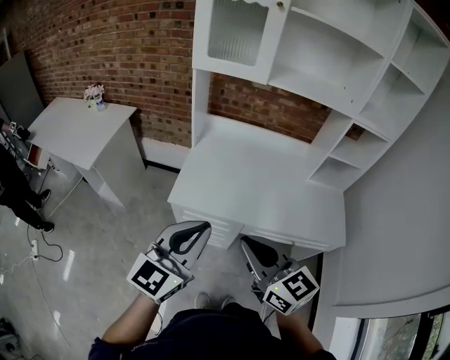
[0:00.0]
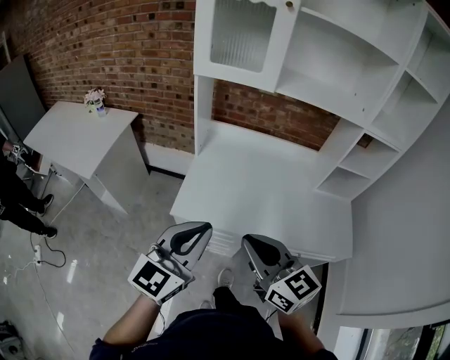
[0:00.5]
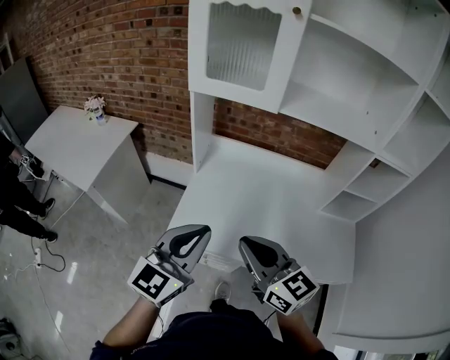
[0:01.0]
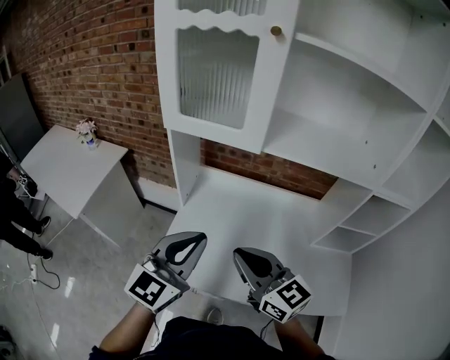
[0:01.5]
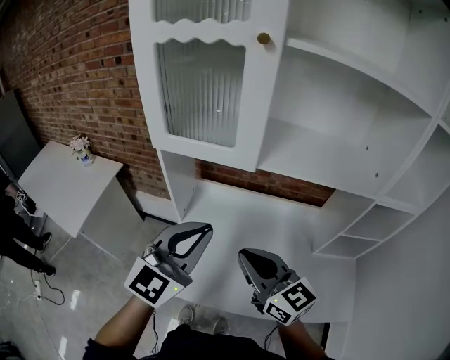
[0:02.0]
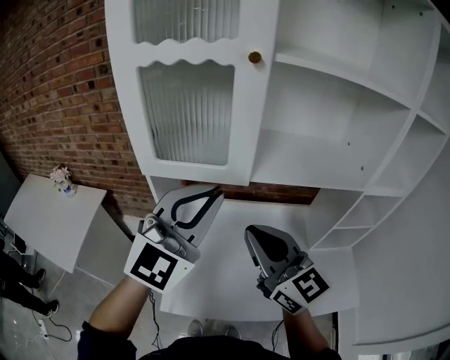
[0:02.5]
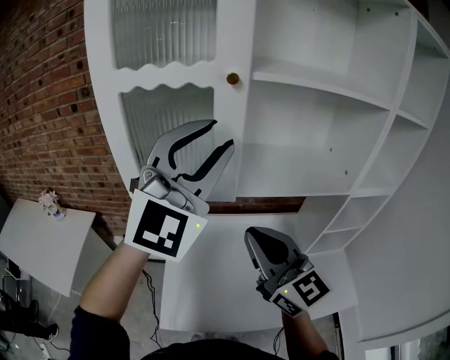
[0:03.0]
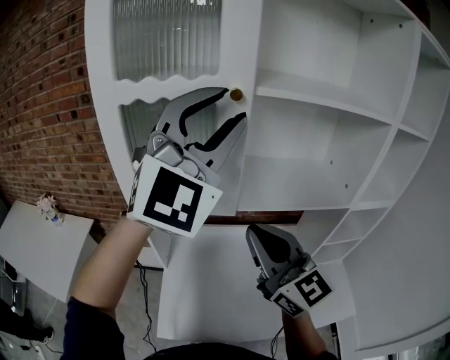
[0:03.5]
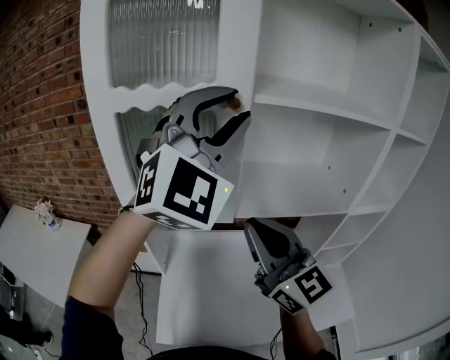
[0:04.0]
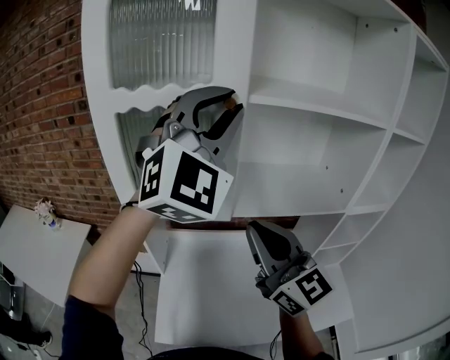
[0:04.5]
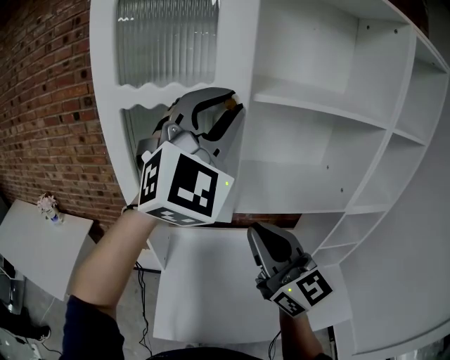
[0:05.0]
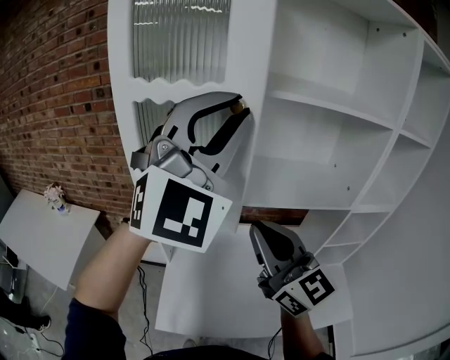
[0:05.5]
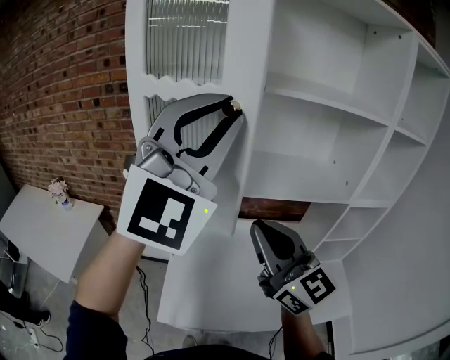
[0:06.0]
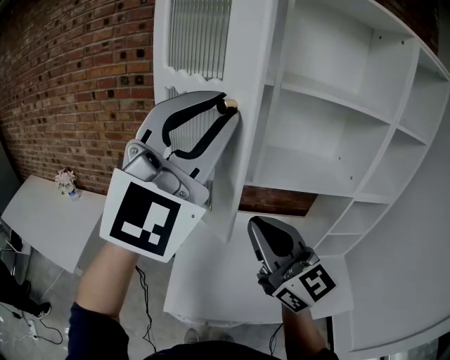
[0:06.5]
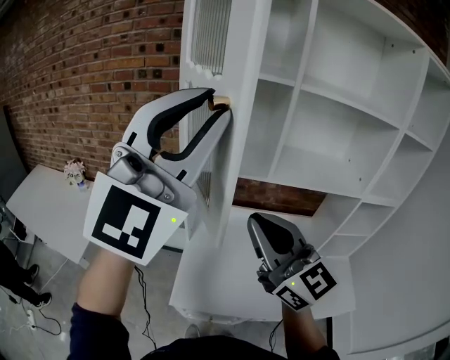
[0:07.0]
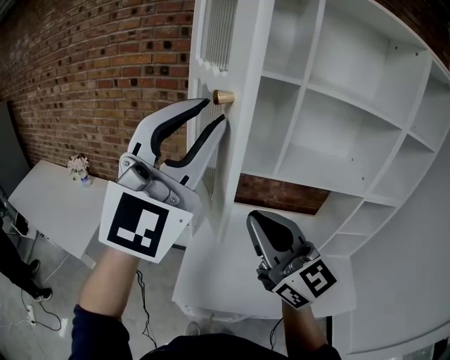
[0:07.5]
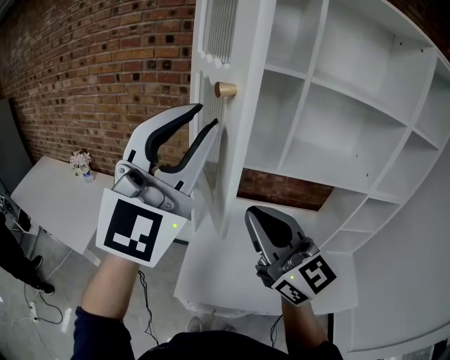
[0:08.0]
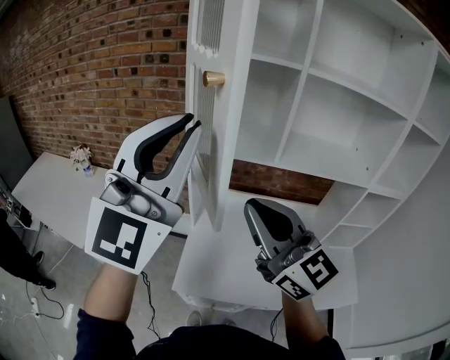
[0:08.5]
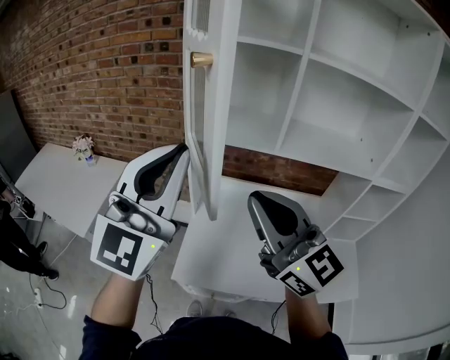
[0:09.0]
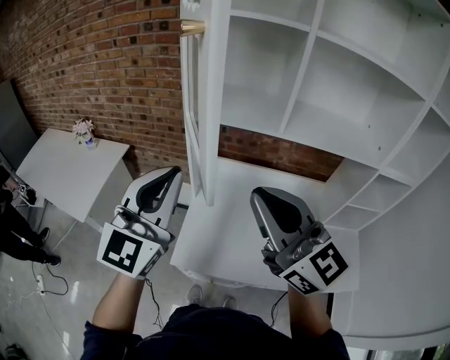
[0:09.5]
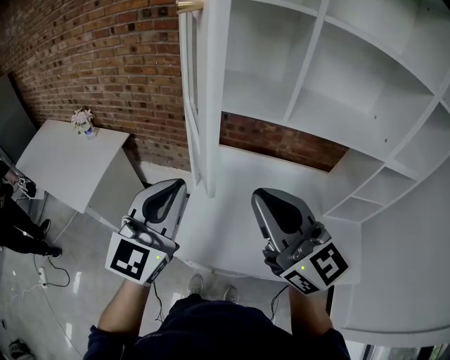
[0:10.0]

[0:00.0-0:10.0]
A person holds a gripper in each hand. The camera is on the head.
0:00.0 to 0:02.0: Both grippers travel together forward, about 35 cm.
0:02.0 to 0:04.0: The left gripper goes about 35 cm upward and forward, rolls clockwise, seen from behind, by approximately 40 degrees, and opens up. Meanwhile the right gripper heads upward and forward, covering roughly 20 cm, and rotates about 30 degrees.
0:04.0 to 0:06.0: The left gripper moves backward, roughly 10 cm, while the right gripper is displaced backward by approximately 5 cm.
0:06.0 to 0:08.0: Both grippers travel together to the left and backward, approximately 15 cm.
0:08.0 to 0:10.0: The left gripper goes roughly 25 cm downward, turns by approximately 30 degrees, and closes. Meanwhile the right gripper moves downward, some 5 cm.

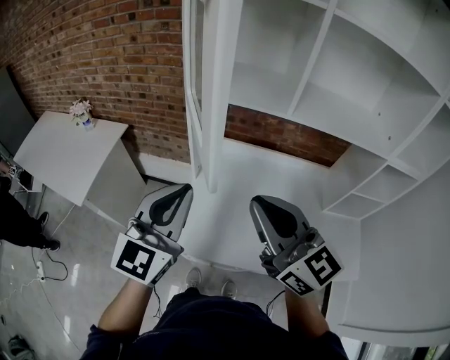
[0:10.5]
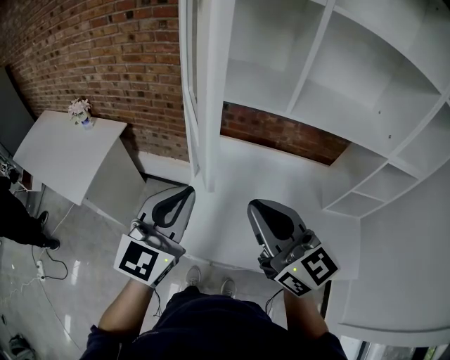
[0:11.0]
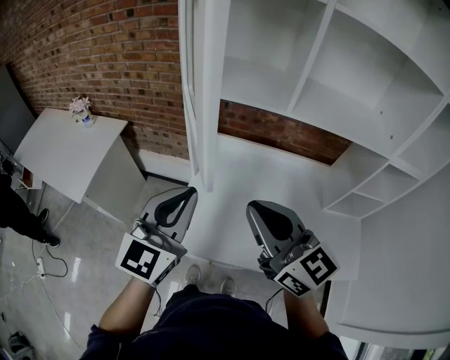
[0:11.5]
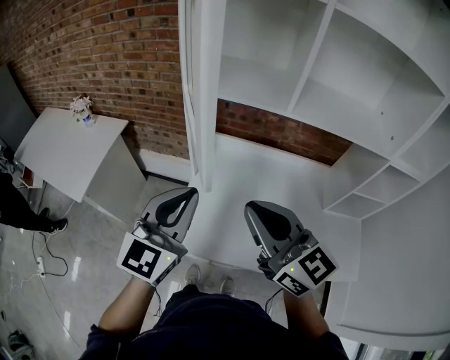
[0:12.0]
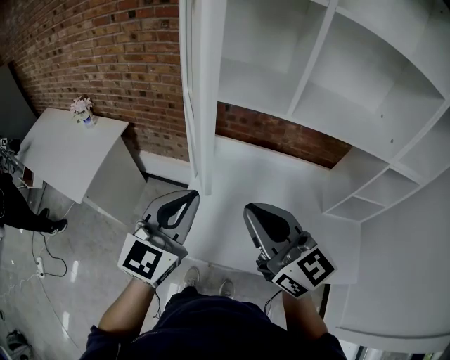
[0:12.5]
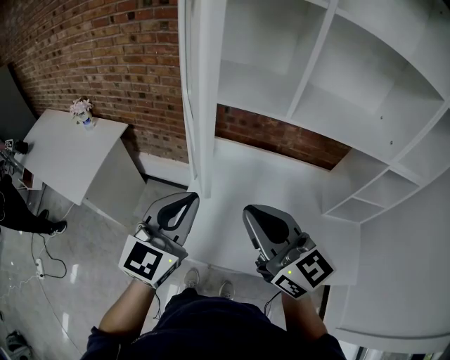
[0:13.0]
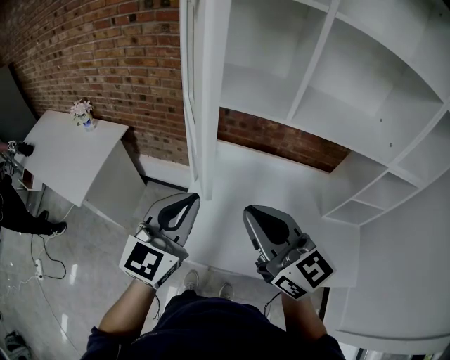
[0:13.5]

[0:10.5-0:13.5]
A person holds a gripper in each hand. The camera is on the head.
0:10.5 to 0:12.0: The grippers move only a little.
0:12.0 to 0:13.5: Both grippers stay put.

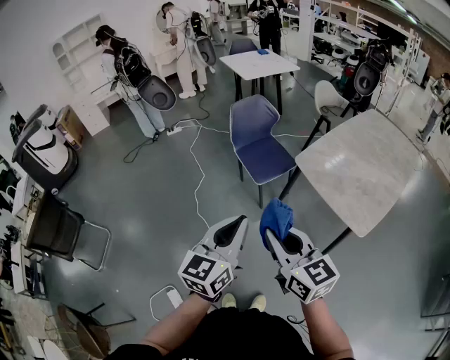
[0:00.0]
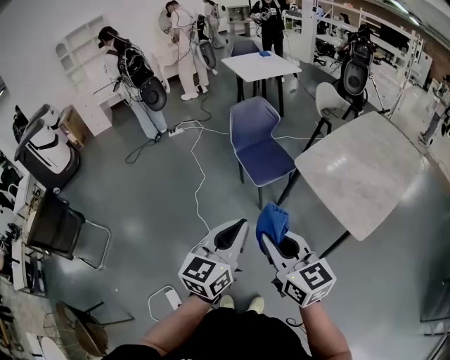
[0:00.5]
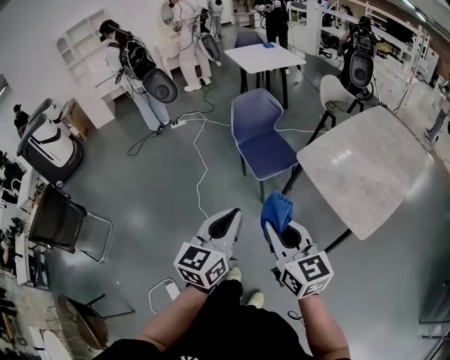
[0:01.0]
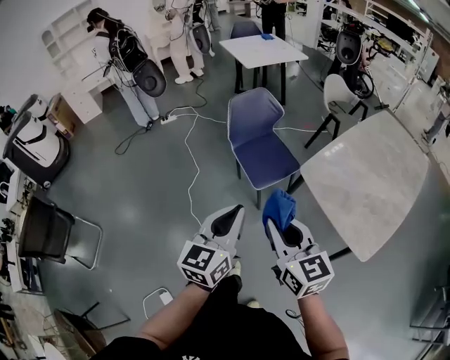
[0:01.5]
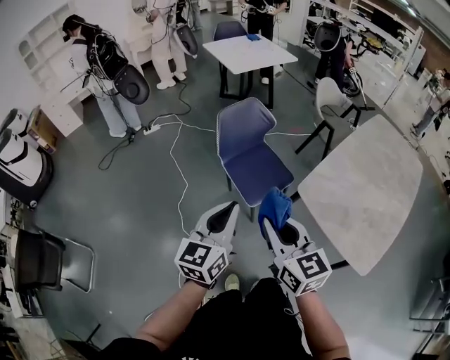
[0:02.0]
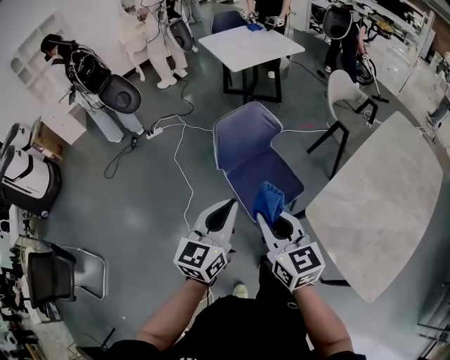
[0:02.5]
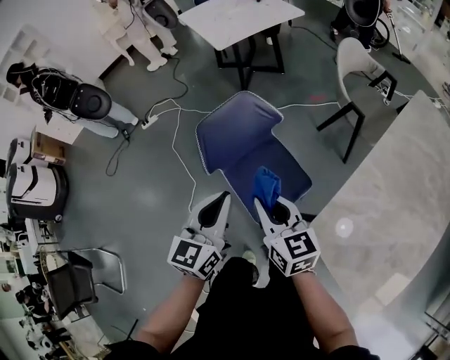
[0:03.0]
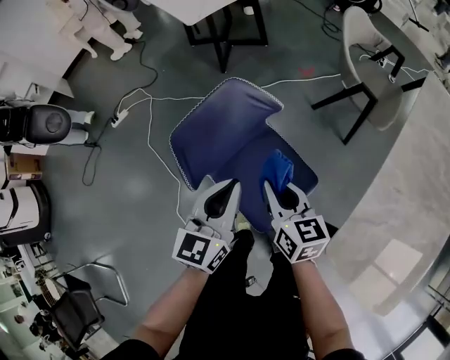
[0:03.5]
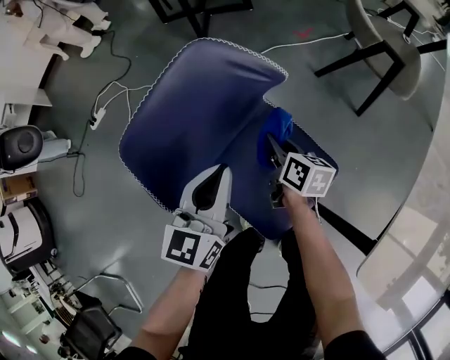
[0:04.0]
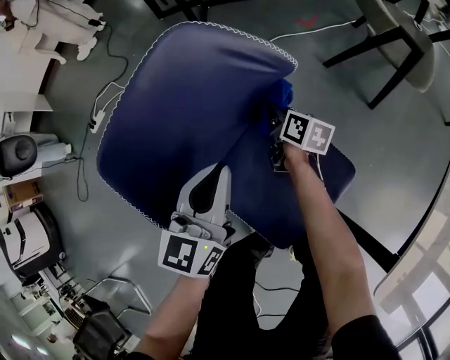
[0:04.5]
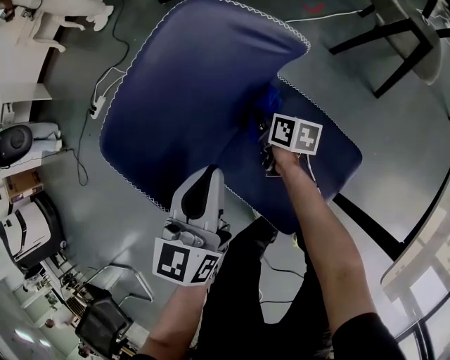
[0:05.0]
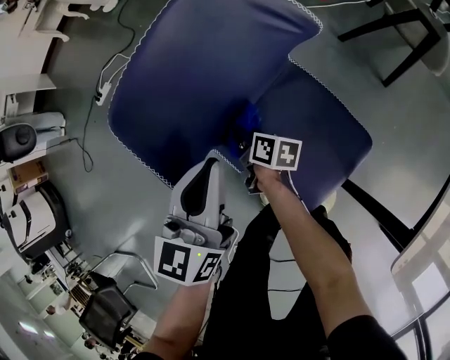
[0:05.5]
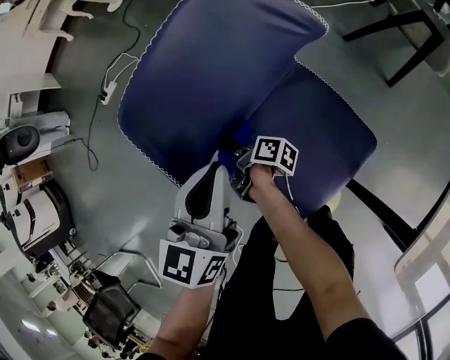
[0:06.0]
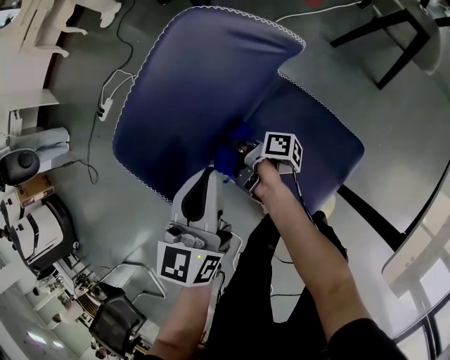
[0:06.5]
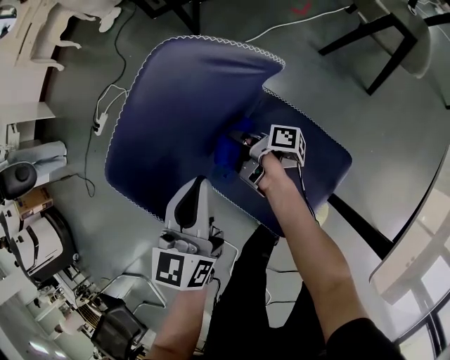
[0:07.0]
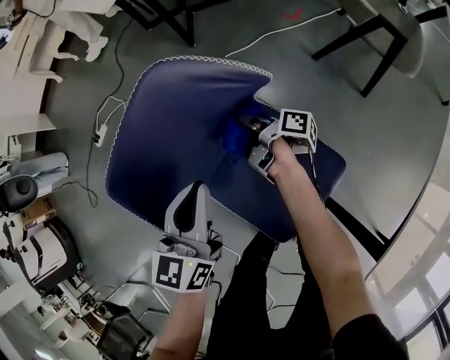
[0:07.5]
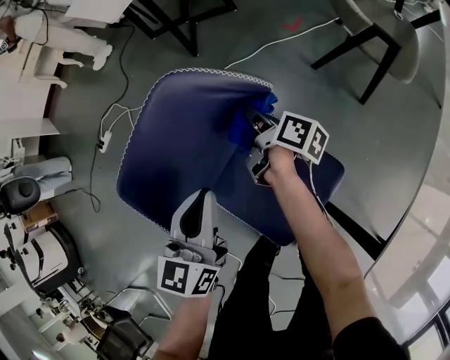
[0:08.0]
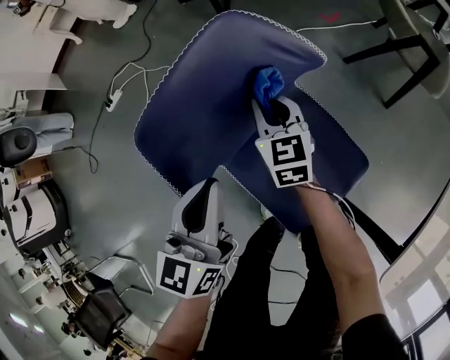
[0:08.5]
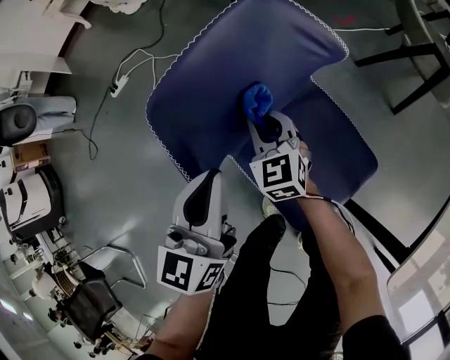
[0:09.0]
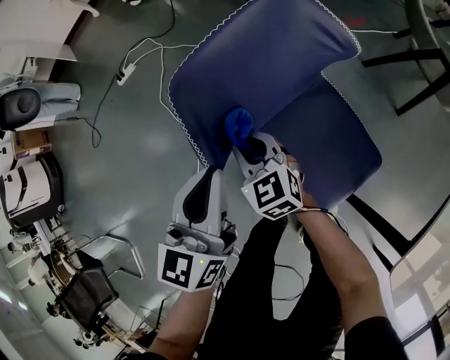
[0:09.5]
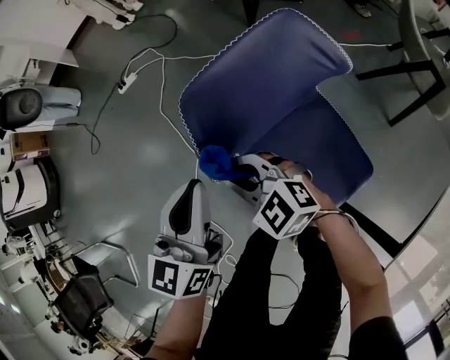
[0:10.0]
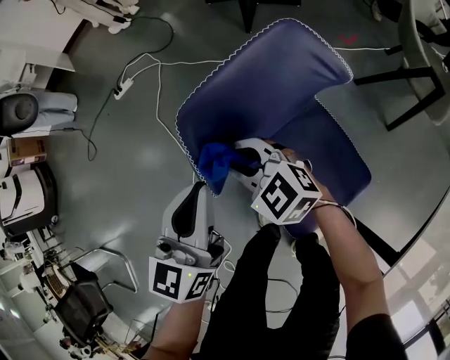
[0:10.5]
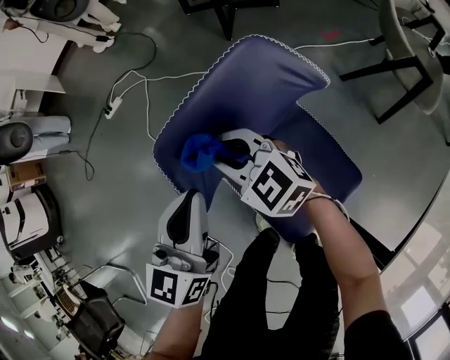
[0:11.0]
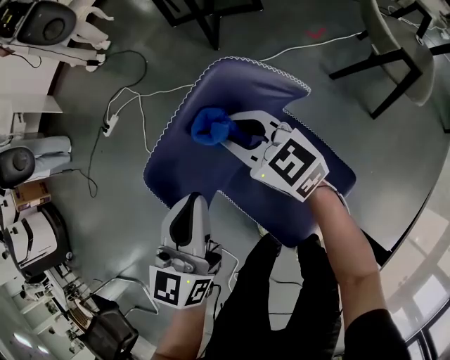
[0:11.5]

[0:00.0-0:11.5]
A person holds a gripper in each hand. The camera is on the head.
0:00.0 to 0:02.0: The two grippers go roughly 35 cm forward.
0:02.0 to 0:04.0: The two grippers travel together, forward, about 60 cm. Both grippers travel together downward, about 50 cm. The right gripper twists roughly 50 degrees clockwise, seen from behind.
0:04.0 to 0:06.0: The right gripper moves to the left and downward, approximately 25 cm, and rolls clockwise, seen from behind, by roughly 40 degrees. The left gripper travels to the left by approximately 10 cm.
0:06.0 to 0:07.5: The right gripper heads to the right and forward, covering roughly 25 cm. Meanwhile the left gripper moves to the right and forward, about 10 cm.
0:07.5 to 0:09.5: The right gripper moves to the left, backward and upward, approximately 25 cm, and rolls counterclockwise, seen from behind, by approximately 110 degrees. Meanwhile the left gripper heads to the left and backward, covering about 15 cm.
0:09.5 to 0:11.5: The right gripper travels to the right, upward and forward by some 20 cm. Meanwhile the left gripper heads to the right and forward, covering some 10 cm.

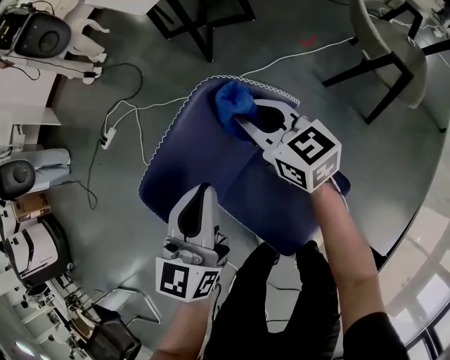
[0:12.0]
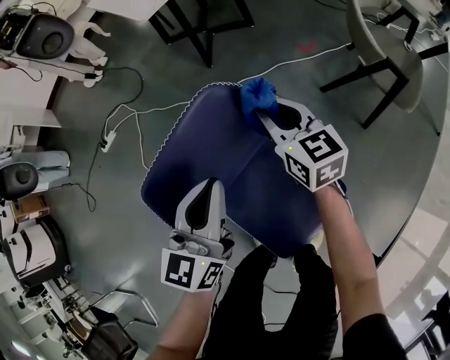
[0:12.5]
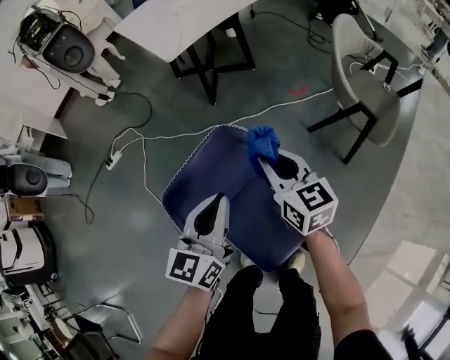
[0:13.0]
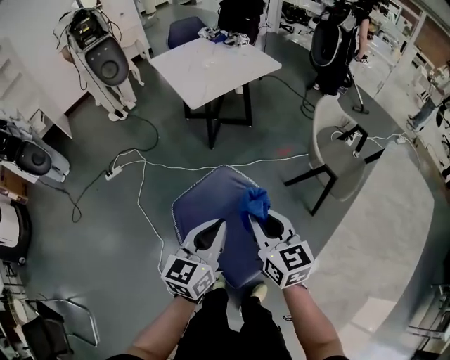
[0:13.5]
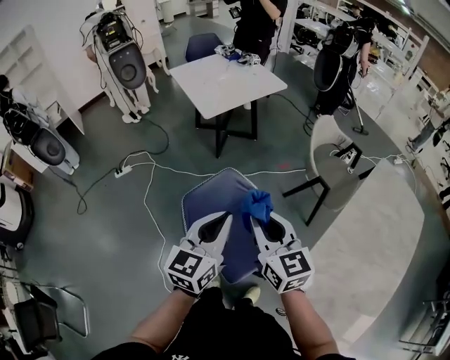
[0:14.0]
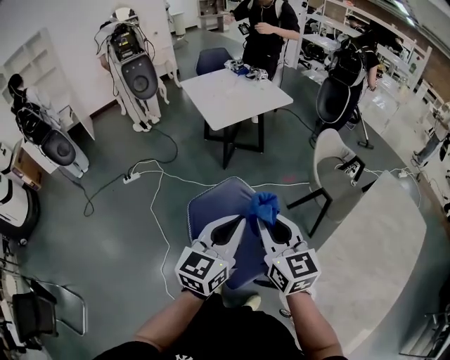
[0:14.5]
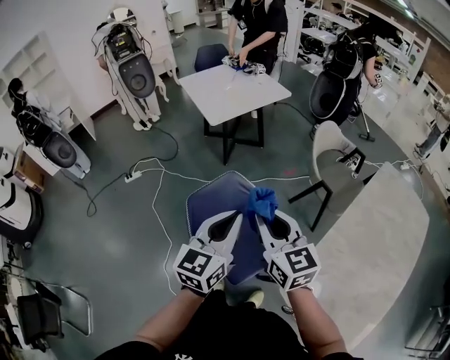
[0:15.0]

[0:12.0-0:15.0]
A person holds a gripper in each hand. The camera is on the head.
0:12.0 to 0:13.5: The right gripper moves upward and backward, approximately 35 cm, while the left gripper is displaced upward by approximately 20 cm.
0:13.5 to 0:15.0: Both grippers move upward and backward, about 15 cm.
